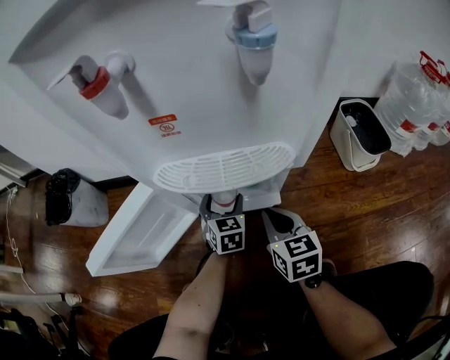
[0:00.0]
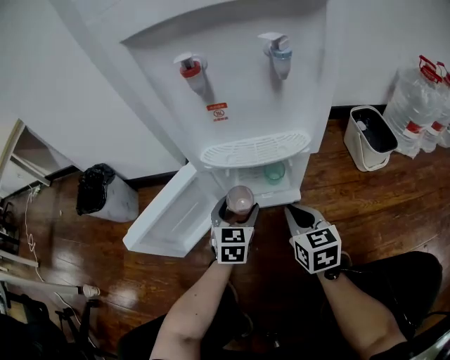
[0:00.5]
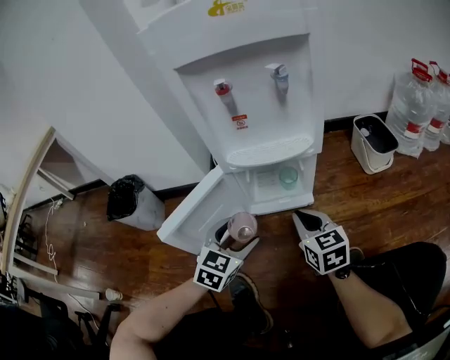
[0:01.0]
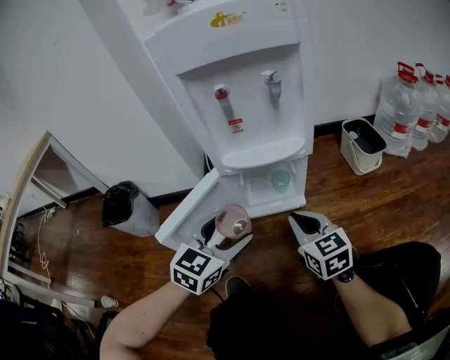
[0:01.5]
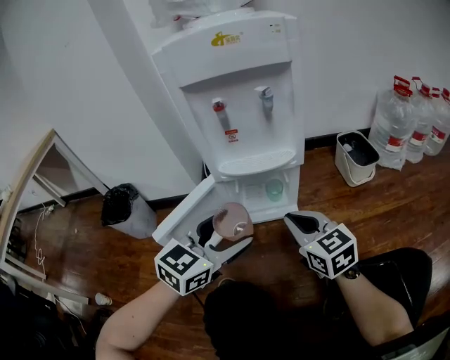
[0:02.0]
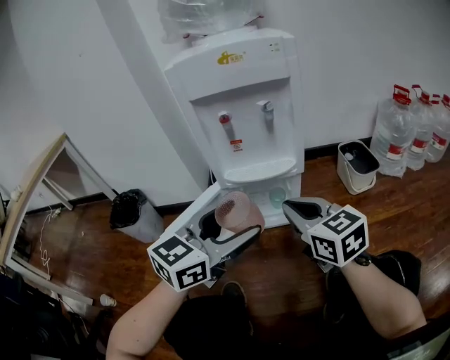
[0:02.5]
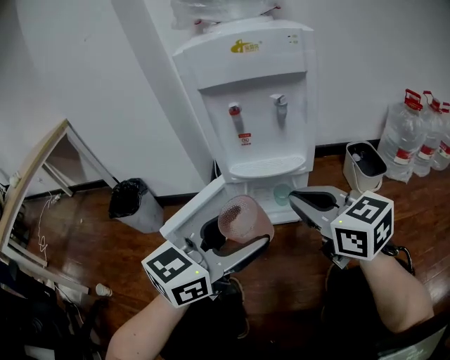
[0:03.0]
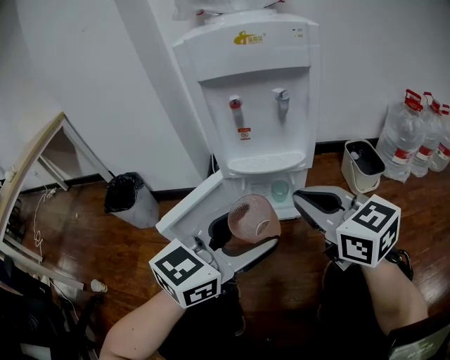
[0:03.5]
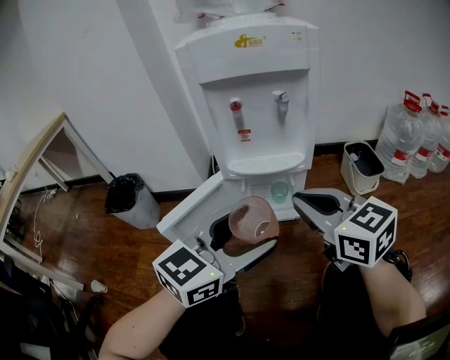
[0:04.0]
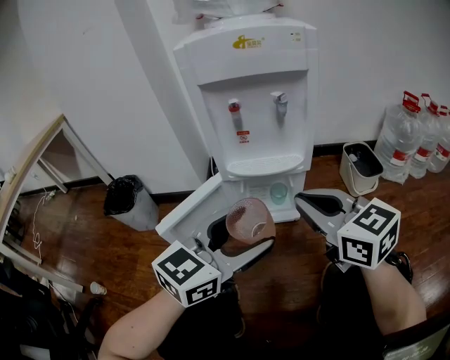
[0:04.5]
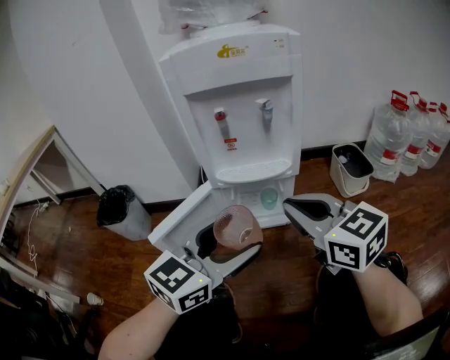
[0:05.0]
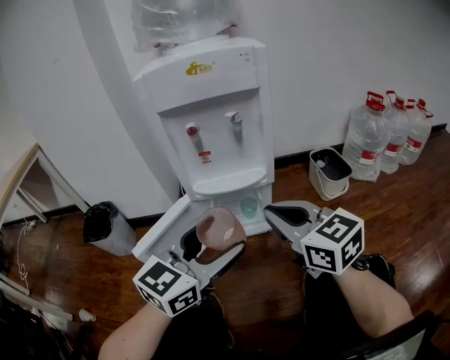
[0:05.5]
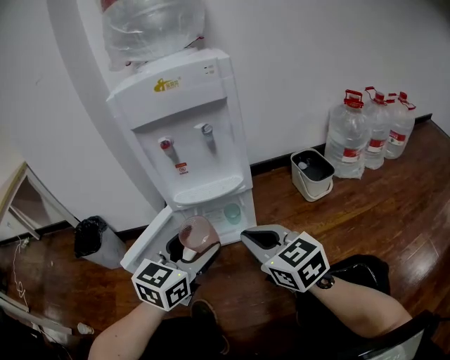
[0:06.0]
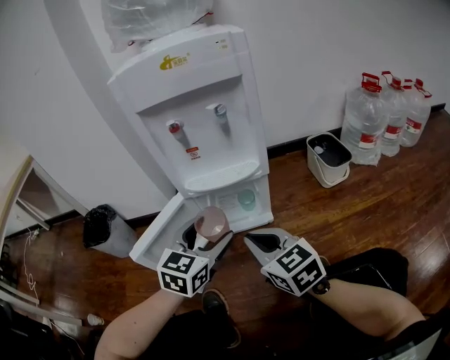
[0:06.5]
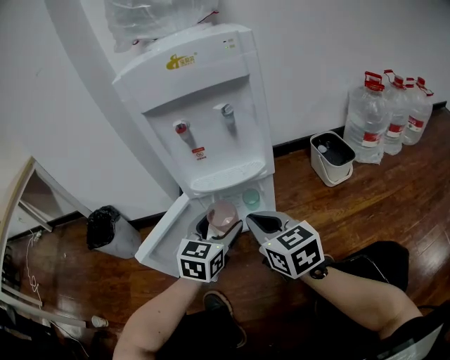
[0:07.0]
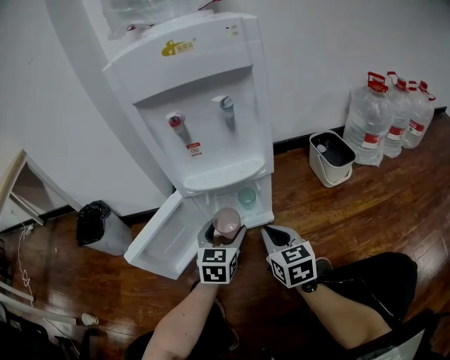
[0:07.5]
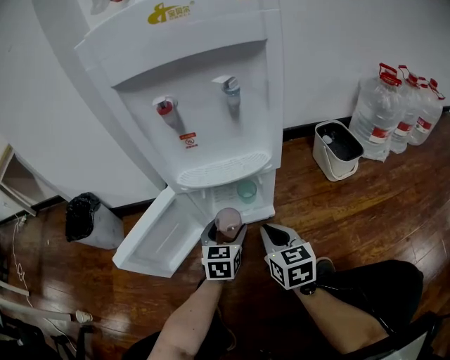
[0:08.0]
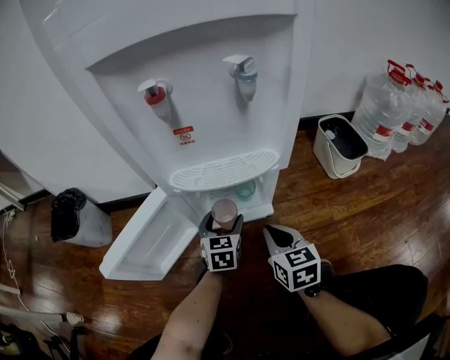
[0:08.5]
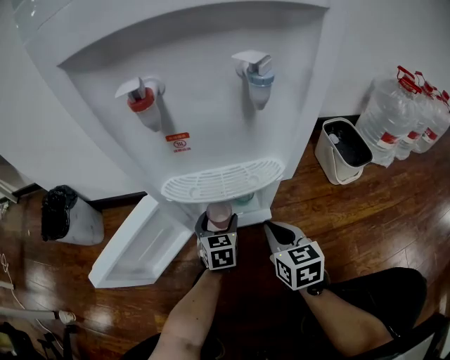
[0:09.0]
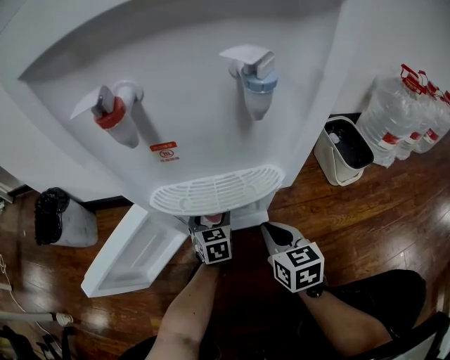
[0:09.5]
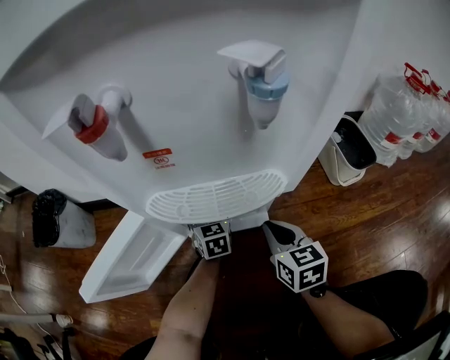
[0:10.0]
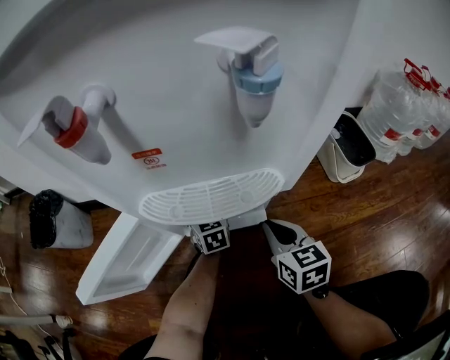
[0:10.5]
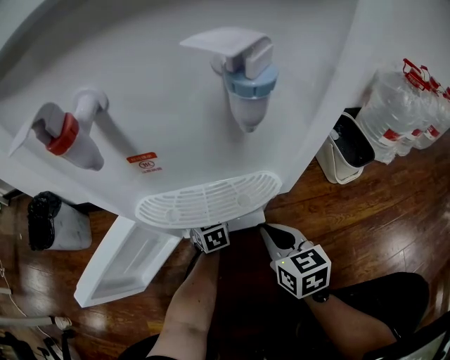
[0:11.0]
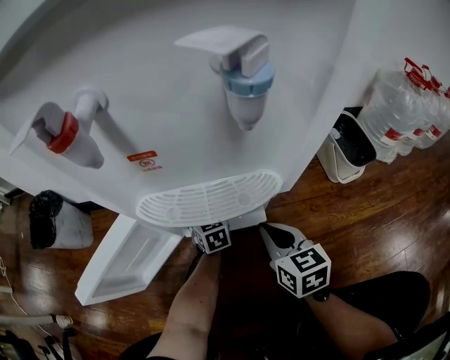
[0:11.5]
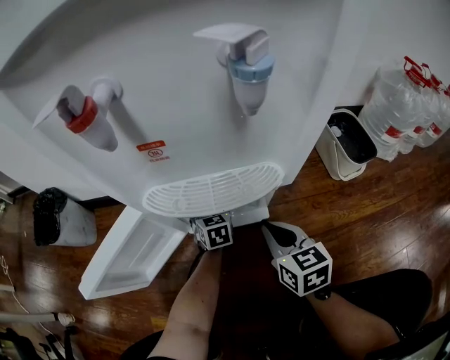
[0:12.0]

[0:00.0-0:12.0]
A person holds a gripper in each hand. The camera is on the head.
0:00.0 to 0:02.0: The right gripper moves upward and backward, roughly 25 cm, while the left gripper moves upward and backward, approximately 40 cm, and changes its angle by about 50 degrees.
0:02.0 to 0:04.0: The left gripper goes some 10 cm upward, while the right gripper moves upward, approximately 15 cm.
0:04.0 to 0:06.0: The right gripper heads downward, covering roughly 5 cm. The left gripper shifts by about 5 cm.
0:06.0 to 0:08.0: Both grippers move downward and forward, approximately 25 cm. The right gripper changes its angle by about 20 degrees; the left gripper rotates approximately 20 degrees.
0:08.0 to 0:10.0: The left gripper heads forward and downward, covering approximately 20 cm. The right gripper goes roughly 10 cm forward and downward.
0:10.0 to 0:12.0: There are only small adjustments of the grippers.

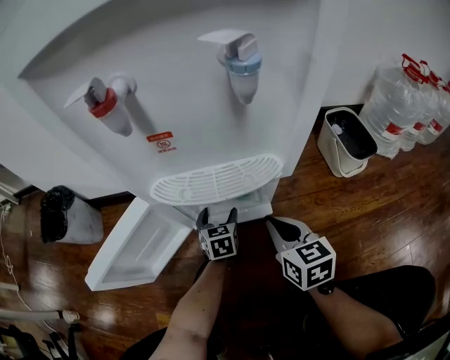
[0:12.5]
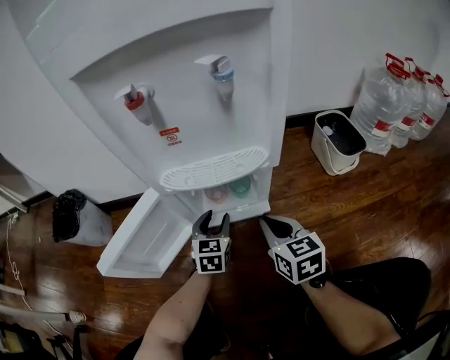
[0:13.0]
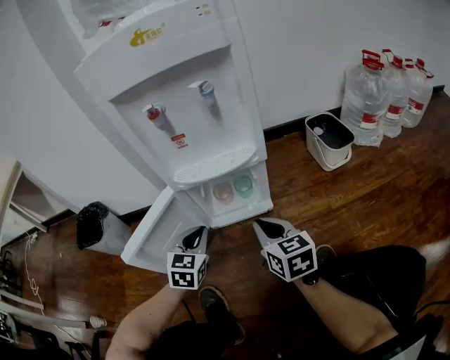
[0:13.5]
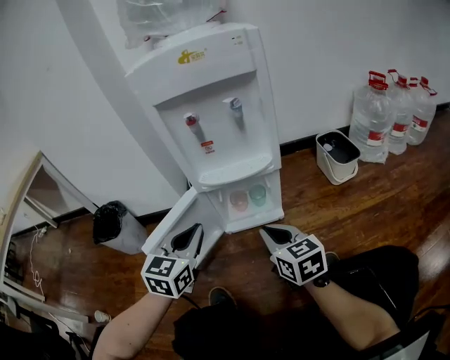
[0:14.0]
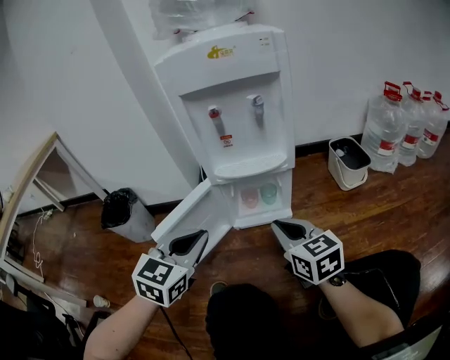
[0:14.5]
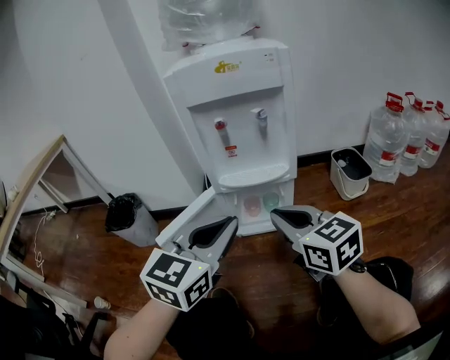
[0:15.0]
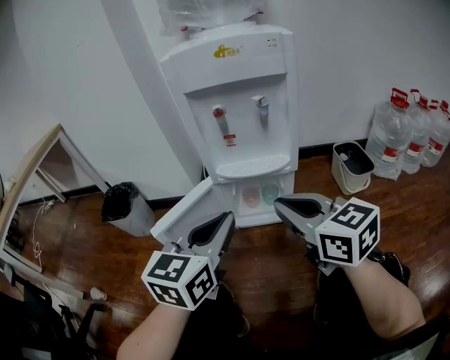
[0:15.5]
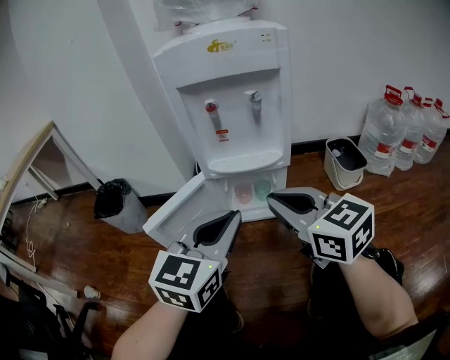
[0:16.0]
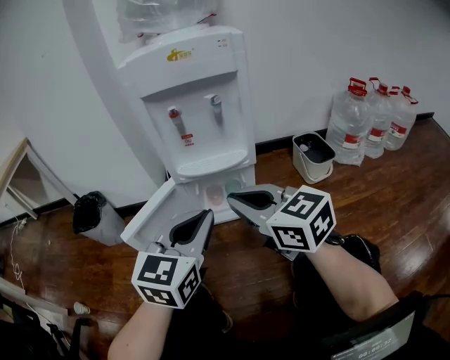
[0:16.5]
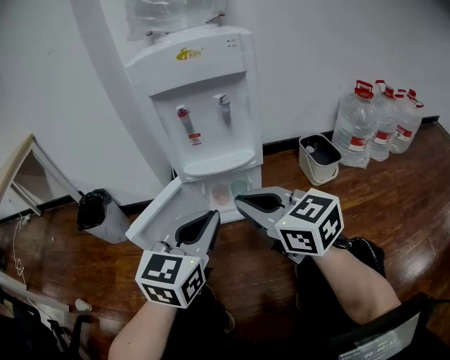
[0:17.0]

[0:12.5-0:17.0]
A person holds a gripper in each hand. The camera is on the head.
0:12.5 to 0:14.5: The right gripper shifts approximately 25 cm upward and backward; the left gripper goes some 50 cm upward and backward, turns by about 30 degrees, and closes up.
0:14.5 to 0:17.0: The left gripper shifts approximately 10 cm to the right and upward. Meanwhile the right gripper shifts approximately 10 cm upward.

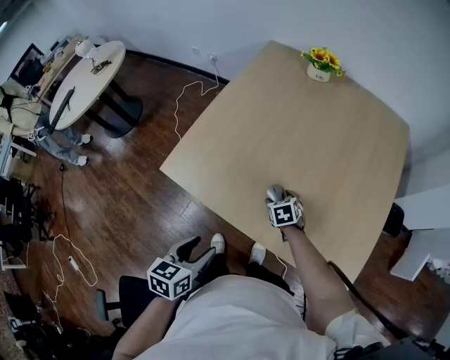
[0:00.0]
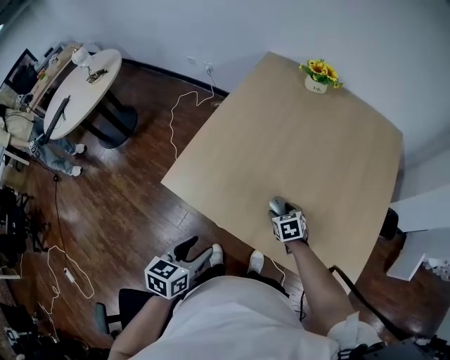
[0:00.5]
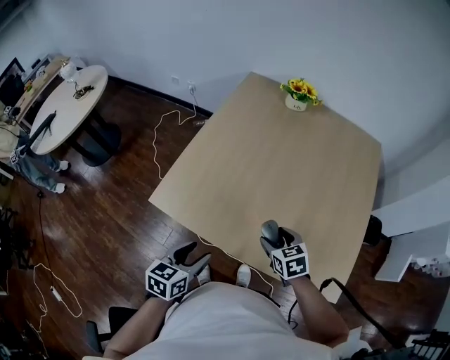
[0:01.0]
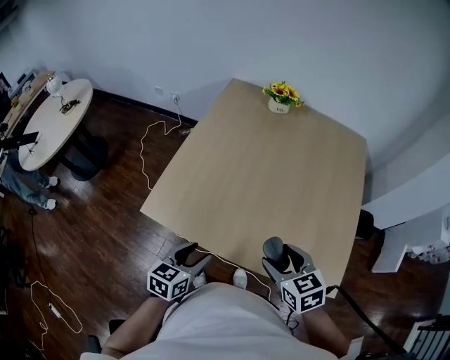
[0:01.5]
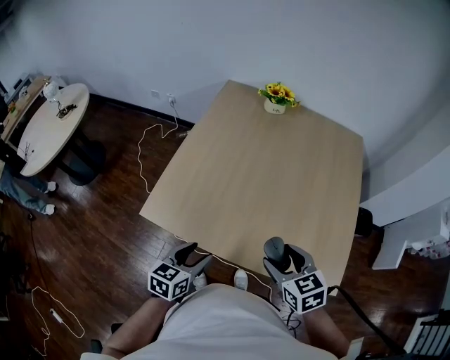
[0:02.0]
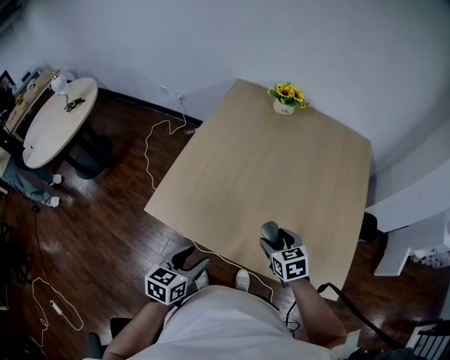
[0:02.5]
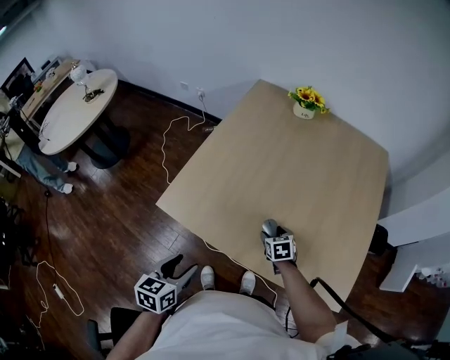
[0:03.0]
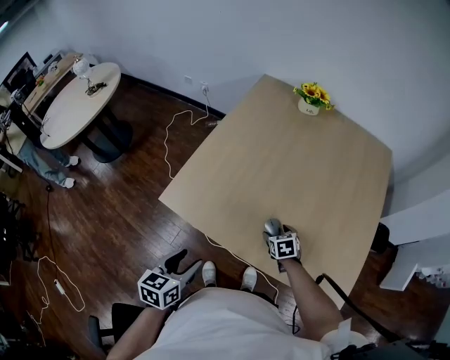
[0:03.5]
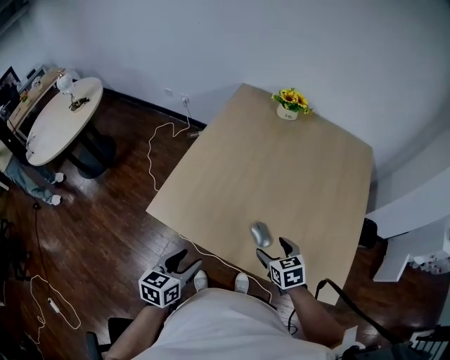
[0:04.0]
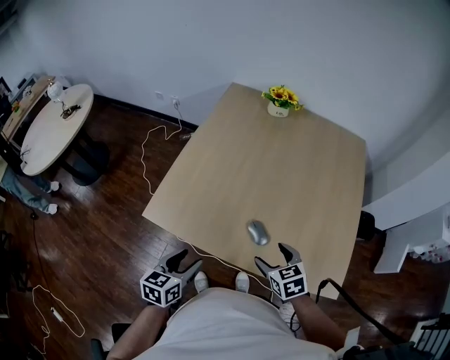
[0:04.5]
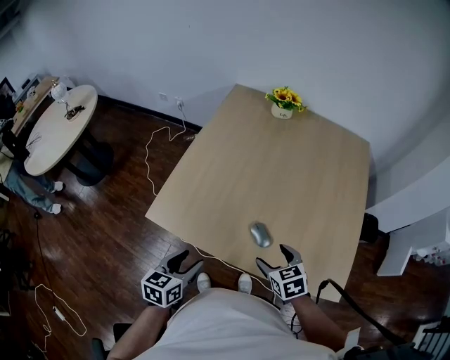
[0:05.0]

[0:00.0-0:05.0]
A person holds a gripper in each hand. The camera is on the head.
0:00.0 to 0:02.5: The right gripper goes some 15 cm upward and backward. Meanwhile the left gripper goes some 5 cm forward.
0:02.5 to 0:05.0: The right gripper goes downward and returns, roughly 15 cm each way.

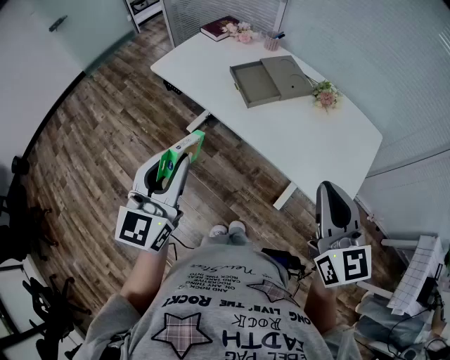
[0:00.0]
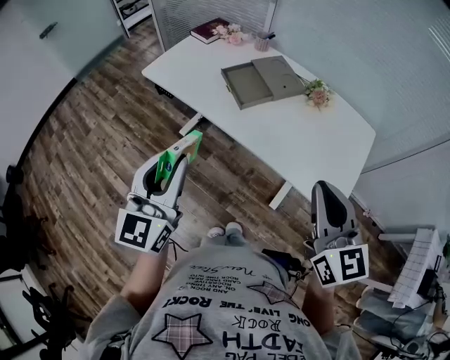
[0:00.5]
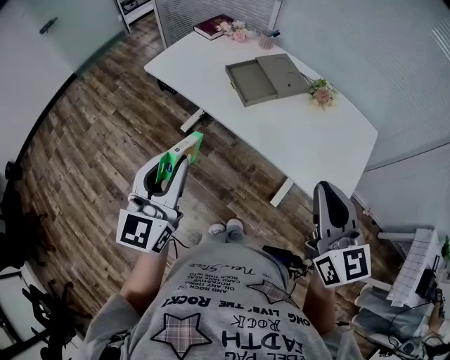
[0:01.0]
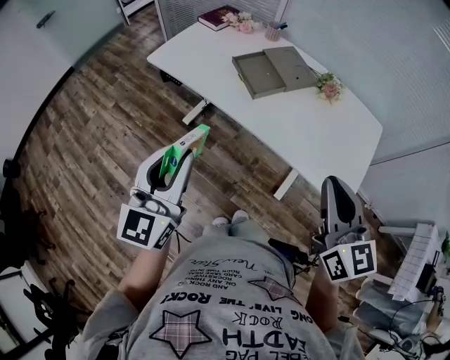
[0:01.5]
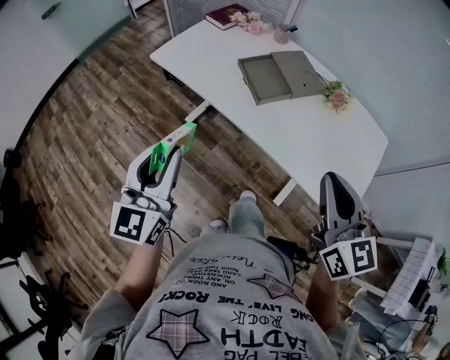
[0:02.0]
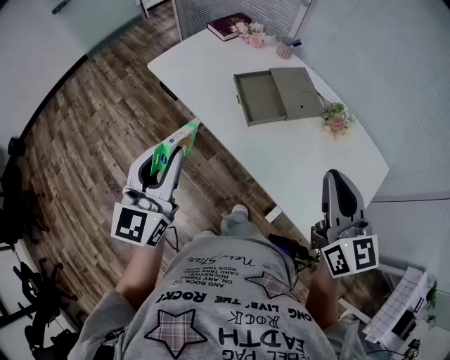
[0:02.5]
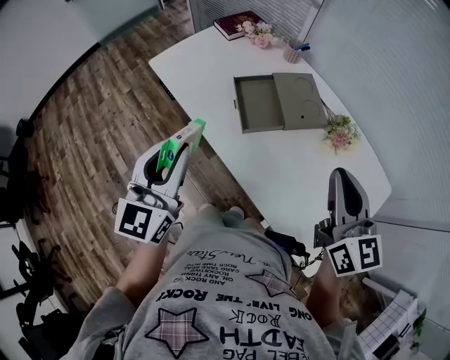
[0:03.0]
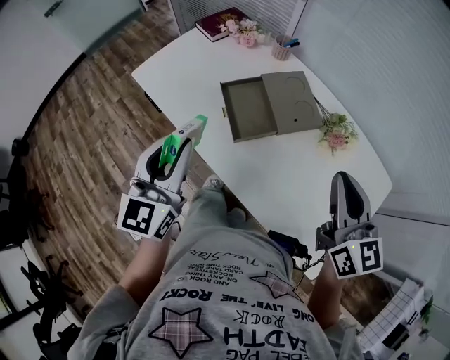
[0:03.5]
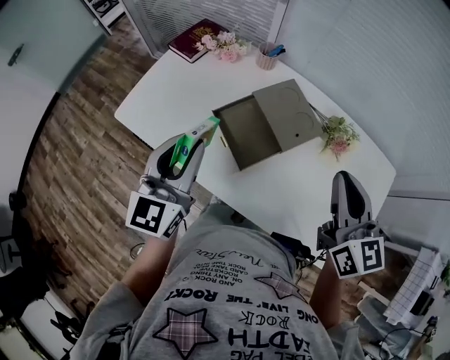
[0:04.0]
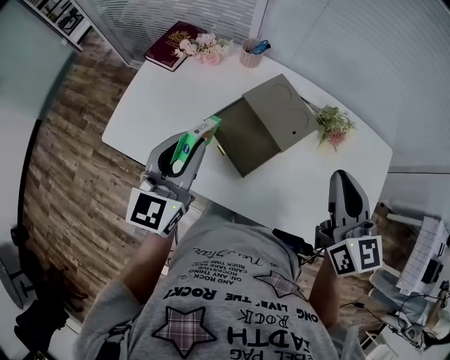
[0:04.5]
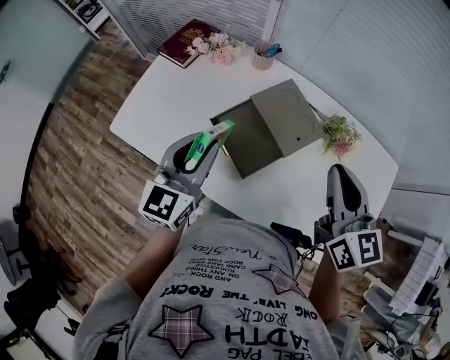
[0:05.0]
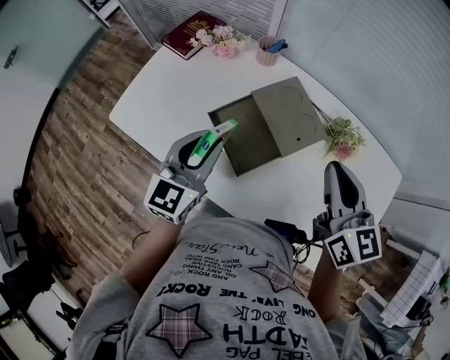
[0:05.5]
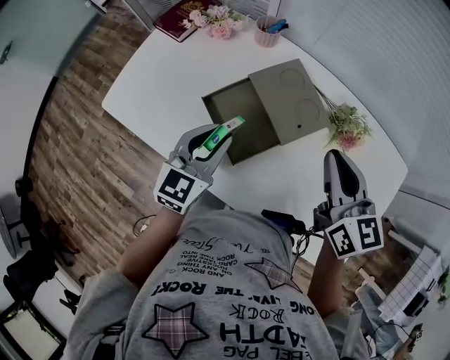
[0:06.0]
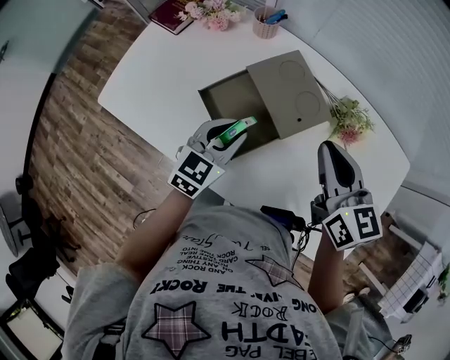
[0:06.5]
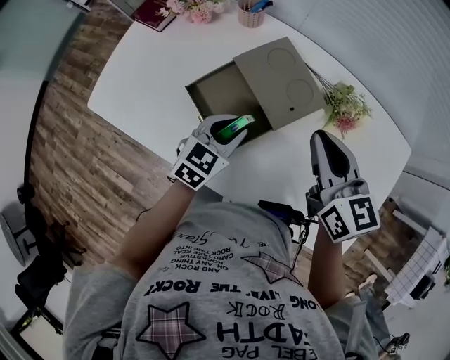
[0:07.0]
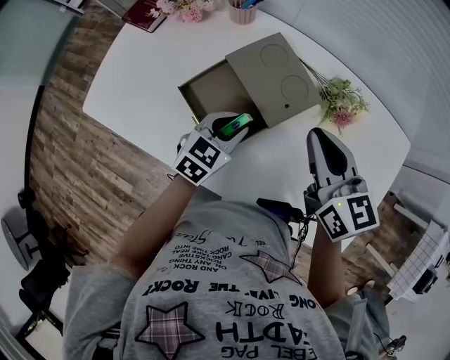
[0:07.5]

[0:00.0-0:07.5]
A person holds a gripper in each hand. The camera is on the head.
0:00.0 to 0:02.0: The left gripper goes about 5 cm to the left, while the right gripper goes some 5 cm forward.
0:02.0 to 0:04.0: Both grippers travel together forward, some 30 cm.
0:04.0 to 0:05.5: The left gripper shifts some 10 cm downward, forward and to the right. The right gripper moves forward, some 5 cm.
0:05.5 to 0:07.5: The right gripper moves downward, roughly 10 cm, while the left gripper moves downward and to the right, roughly 20 cm, and turns by some 30 degrees.
